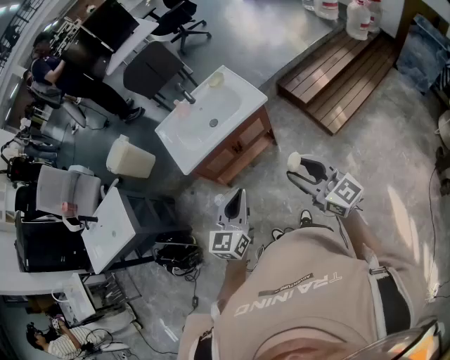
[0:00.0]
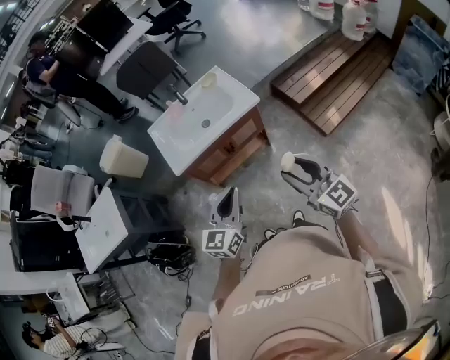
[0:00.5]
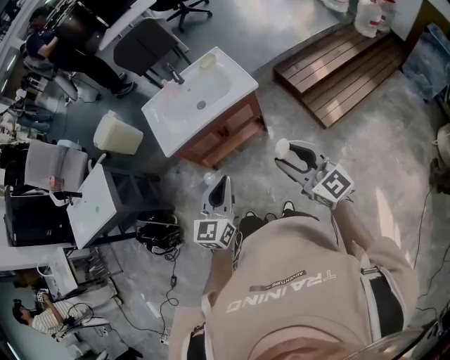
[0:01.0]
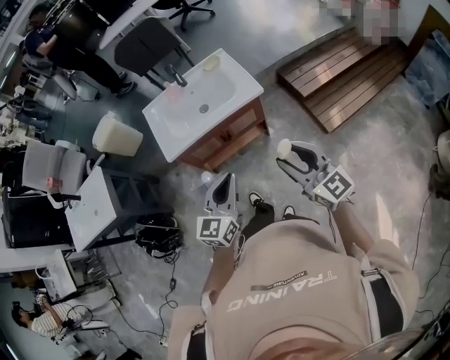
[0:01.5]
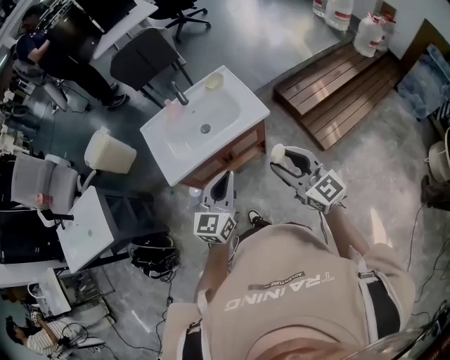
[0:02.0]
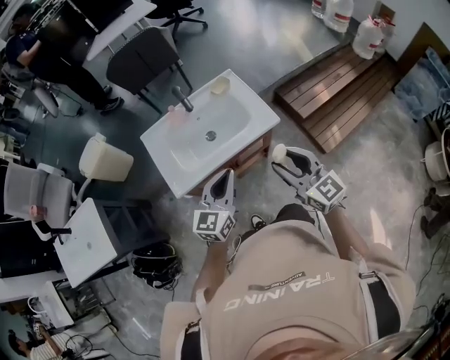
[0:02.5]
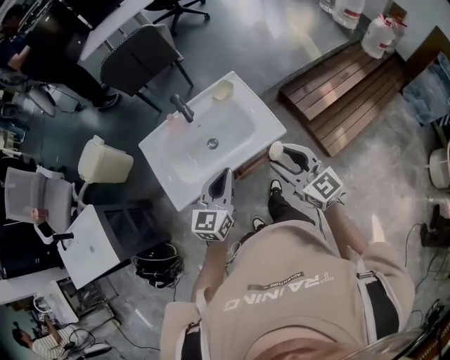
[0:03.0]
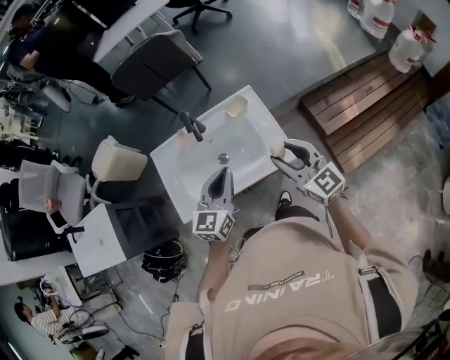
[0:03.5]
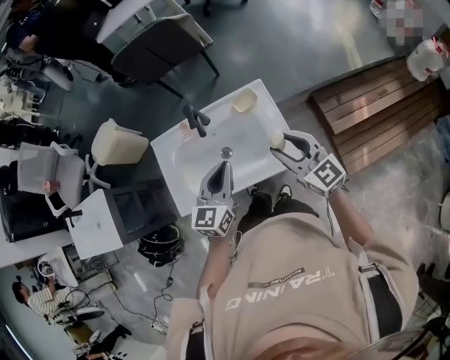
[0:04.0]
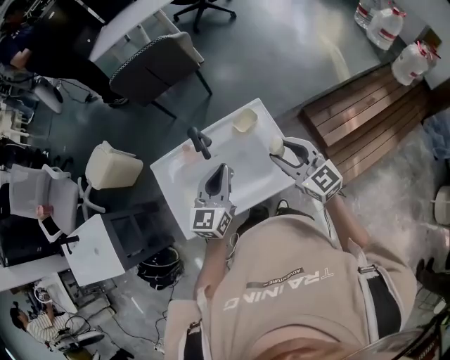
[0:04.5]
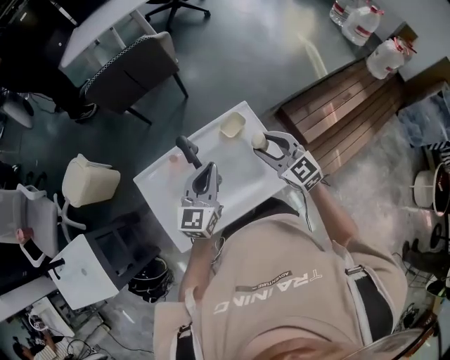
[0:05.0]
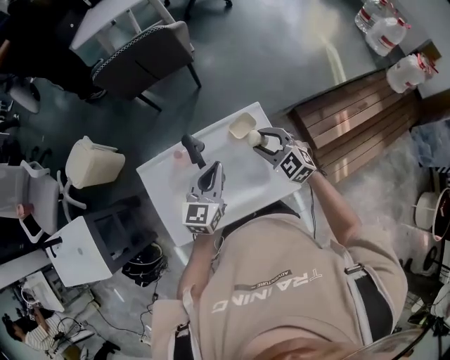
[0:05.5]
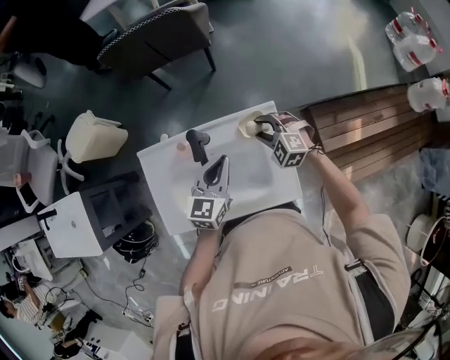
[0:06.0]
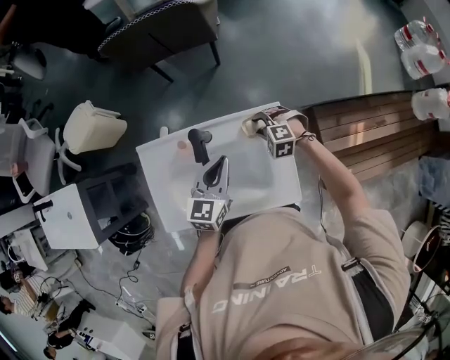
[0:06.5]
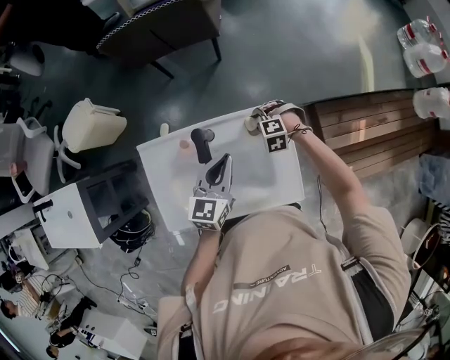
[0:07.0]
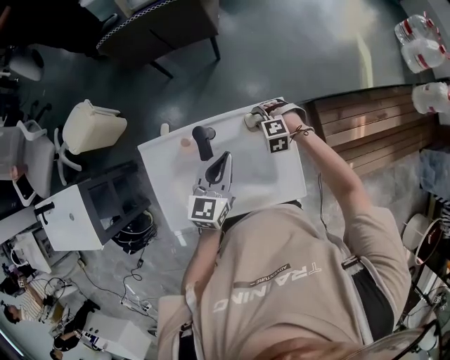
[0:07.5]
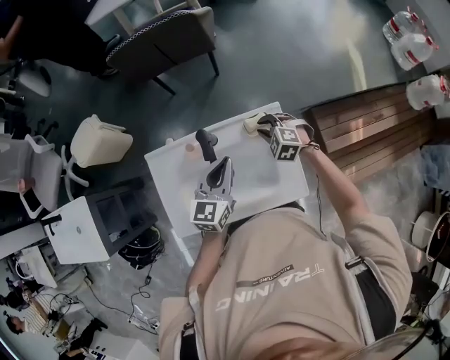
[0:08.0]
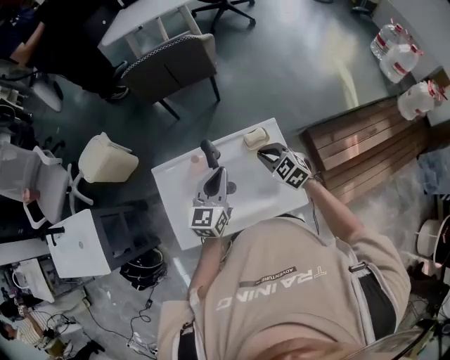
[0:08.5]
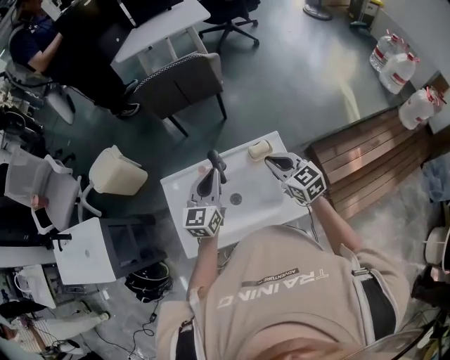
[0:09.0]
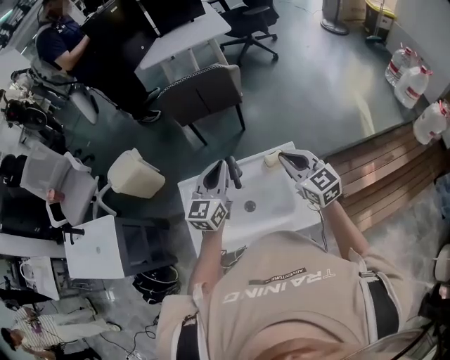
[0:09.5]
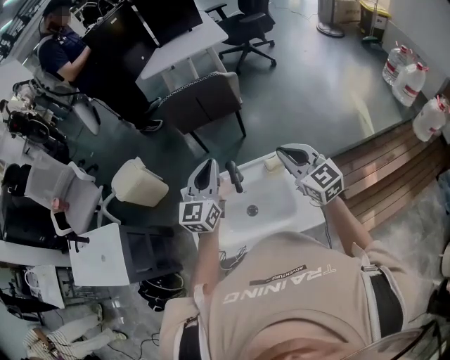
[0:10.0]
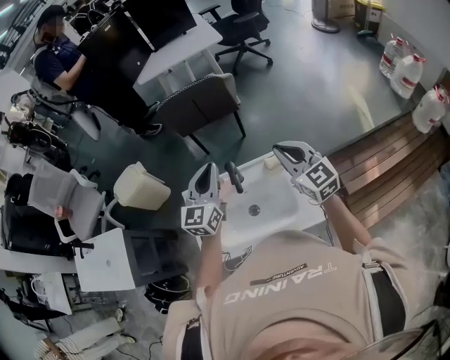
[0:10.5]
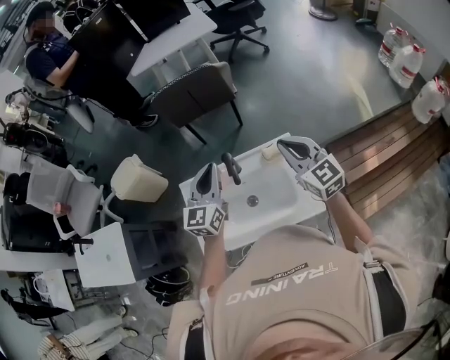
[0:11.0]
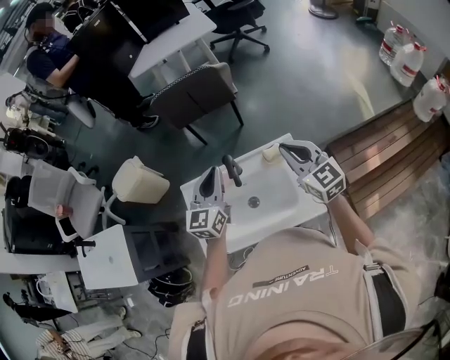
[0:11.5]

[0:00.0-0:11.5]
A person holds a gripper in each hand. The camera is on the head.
0:00.0 to 0:02.0: The grippers both shift forward by roughly 15 cm.
0:02.0 to 0:04.0: Both grippers move forward, roughly 35 cm.
0:04.0 to 0:06.0: The left gripper travels forward by about 15 cm. Meanwhile the right gripper goes approximately 30 cm forward and downward, and angles its fingers downward, by approximately 40 degrees.
0:06.0 to 0:07.5: The right gripper goes roughly 10 cm downward, and rotates some 30 degrees.
0:07.5 to 0:09.5: The left gripper goes approximately 15 cm upward and to the left. The right gripper shifts some 30 cm upward, tips its fingers upward by some 50 degrees, and closes.
0:09.5 to 0:11.5: There are only small adjustments of the grippers.

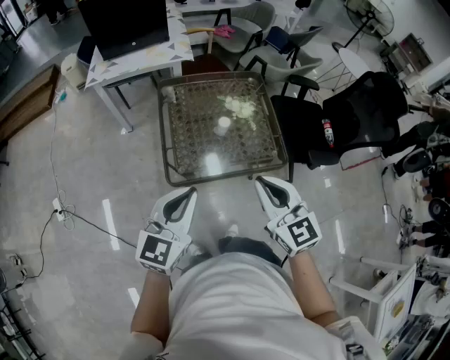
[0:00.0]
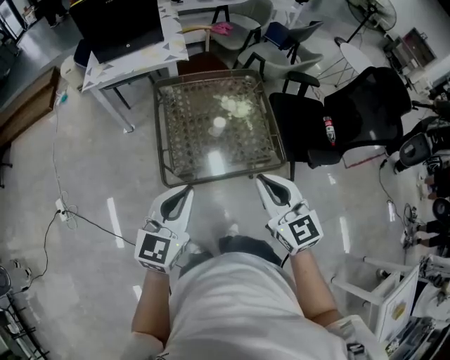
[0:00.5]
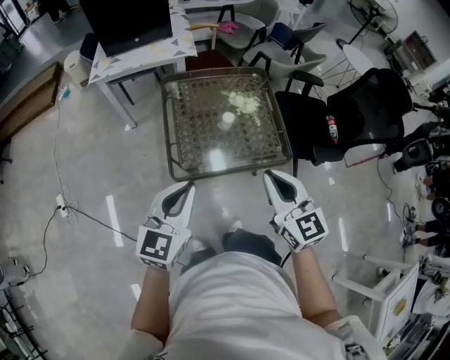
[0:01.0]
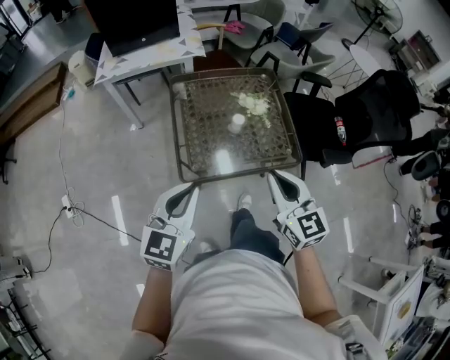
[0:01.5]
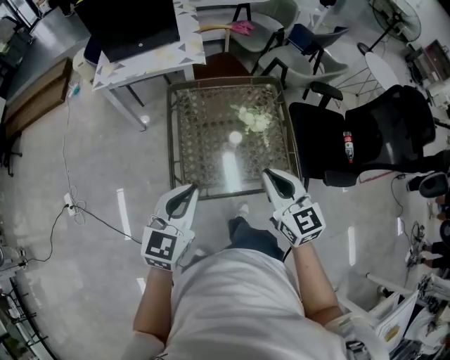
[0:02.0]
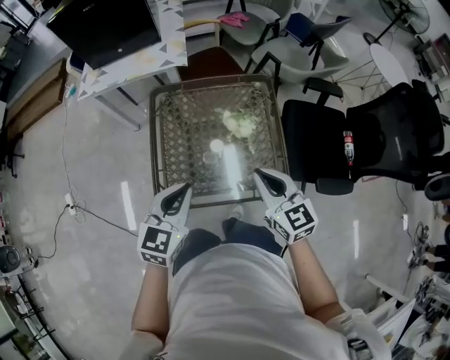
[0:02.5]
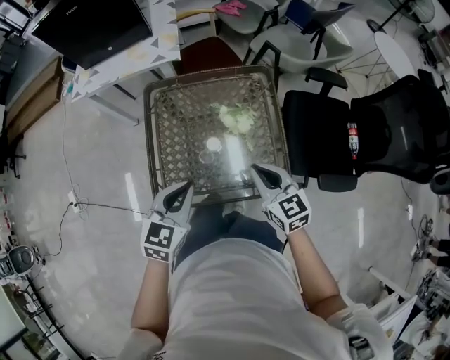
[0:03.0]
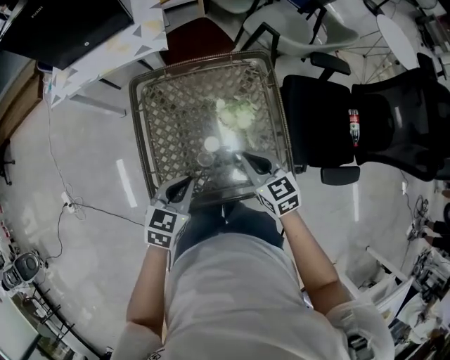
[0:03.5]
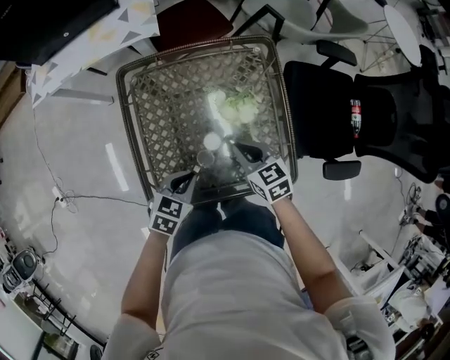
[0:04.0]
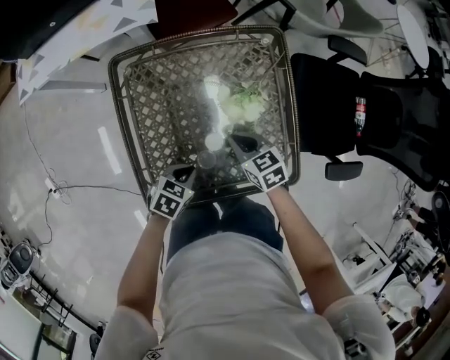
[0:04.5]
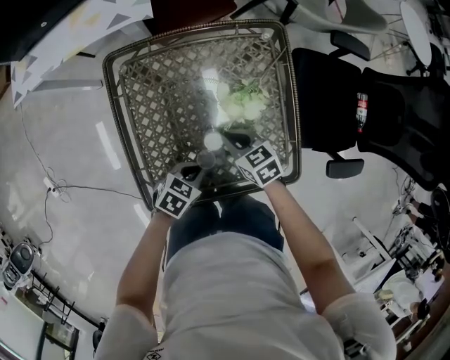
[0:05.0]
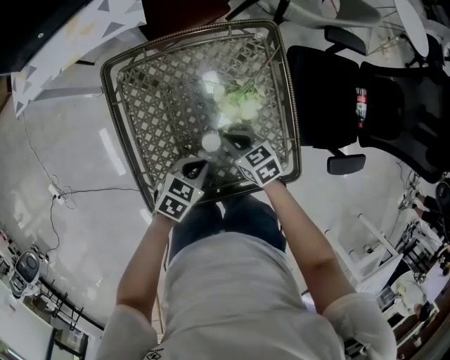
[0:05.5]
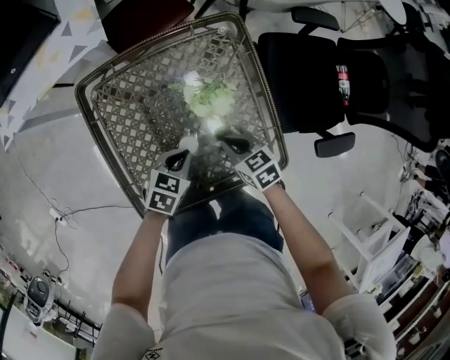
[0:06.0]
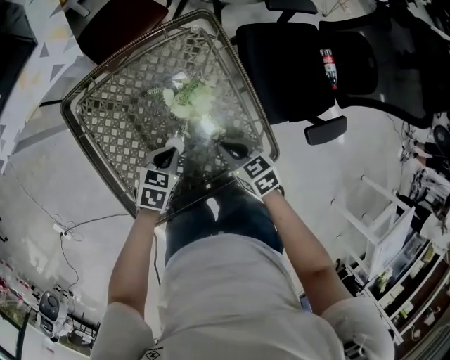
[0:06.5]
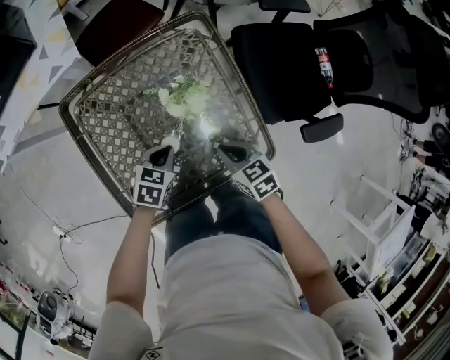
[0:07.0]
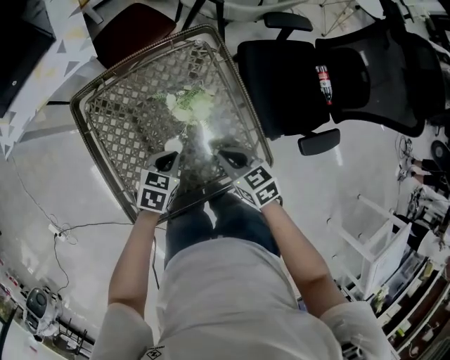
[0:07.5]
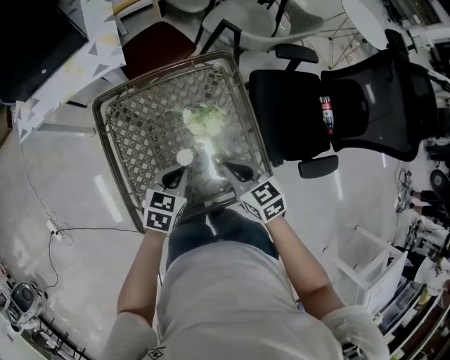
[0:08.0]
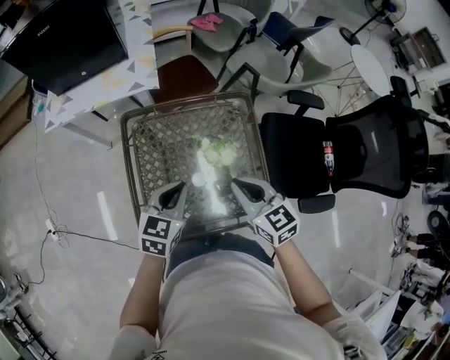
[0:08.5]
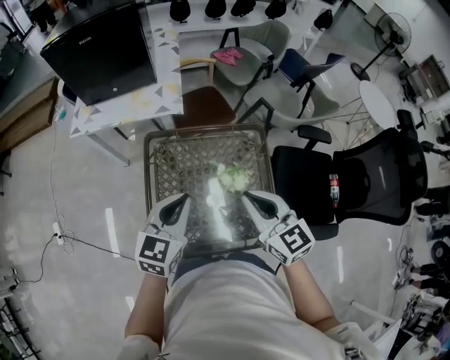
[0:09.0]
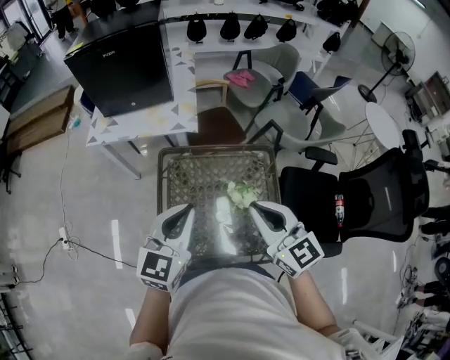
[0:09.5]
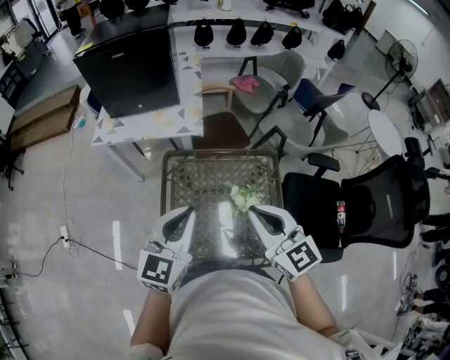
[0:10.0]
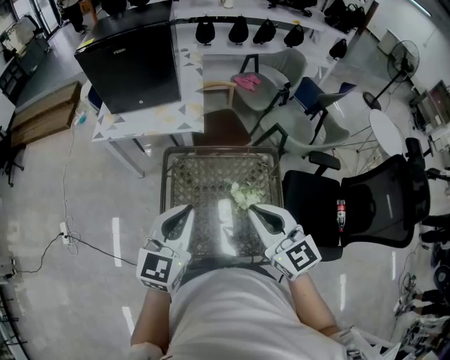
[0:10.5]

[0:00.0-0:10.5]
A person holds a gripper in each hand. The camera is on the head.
0:00.0 to 0:02.0: Both grippers travel together forward, some 15 cm.
0:02.0 to 0:04.0: The grippers both shift downward and forward by approximately 30 cm. The left gripper points its fingers approximately 30 degrees further downward; the right gripper changes its angle by about 30 degrees.
0:04.0 to 0:06.5: The right gripper changes place by about 10 cm. Meanwhile the left gripper moves approximately 15 cm.
0:06.5 to 0:08.5: Both grippers travel together upward, some 25 cm. The right gripper swivels some 30 degrees. Meanwhile the left gripper turns by approximately 30 degrees.
0:08.5 to 0:10.5: The two grippers go roughly 20 cm upward. The left gripper changes its angle by approximately 30 degrees. The right gripper changes its angle by some 20 degrees.

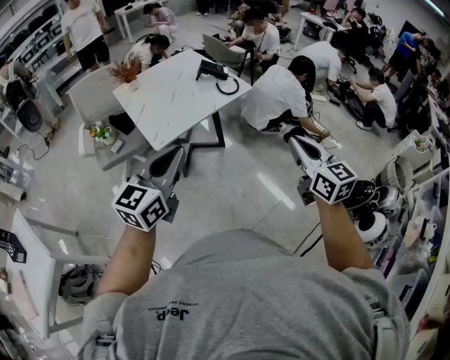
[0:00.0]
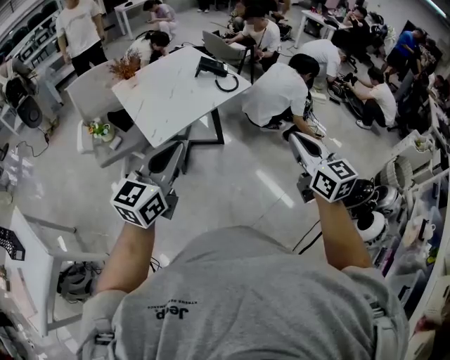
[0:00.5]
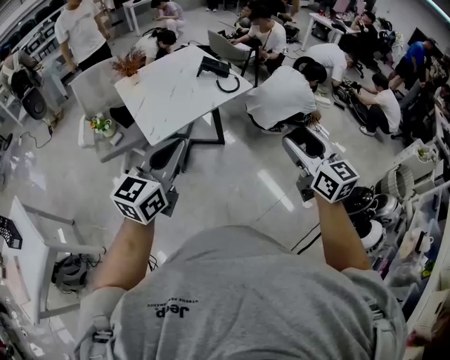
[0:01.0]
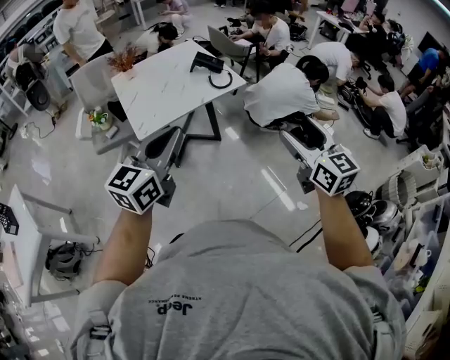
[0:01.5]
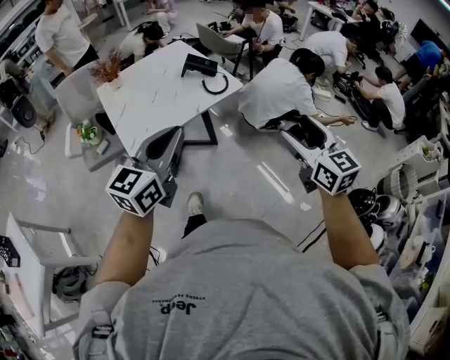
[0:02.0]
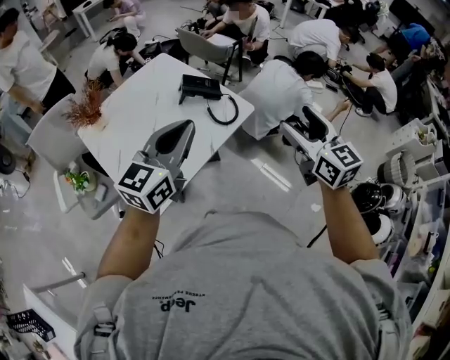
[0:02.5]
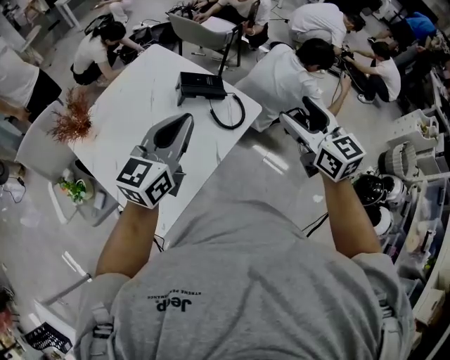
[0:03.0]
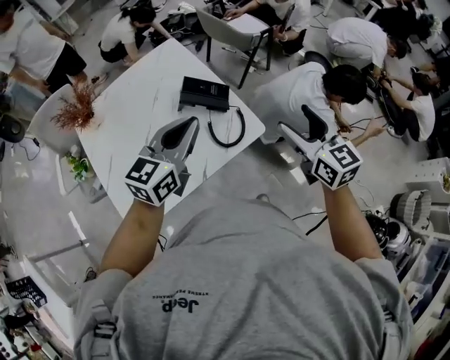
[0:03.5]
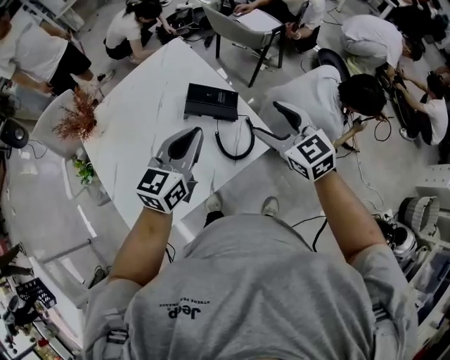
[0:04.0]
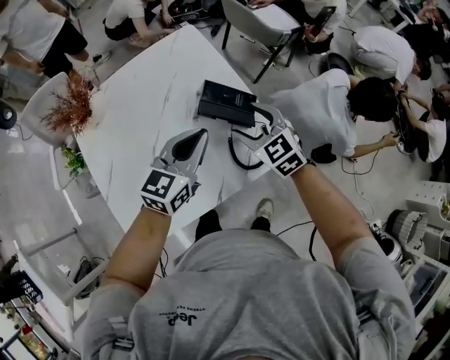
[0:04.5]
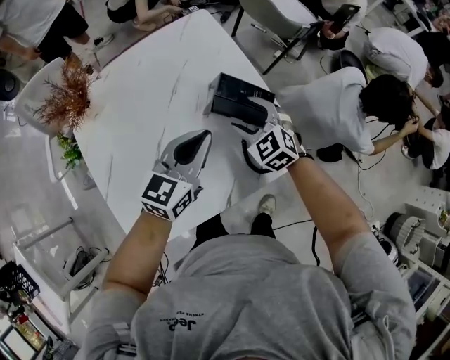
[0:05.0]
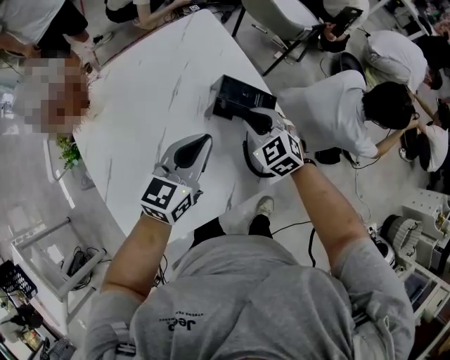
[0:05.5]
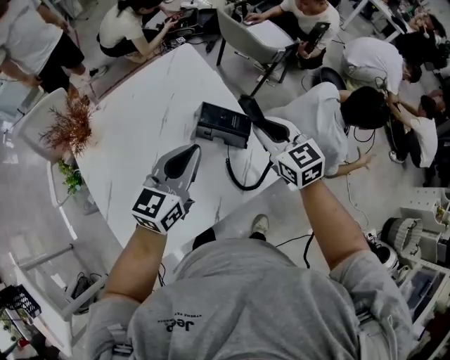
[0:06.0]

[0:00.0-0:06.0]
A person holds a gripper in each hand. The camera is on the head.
0:00.0 to 0:02.0: The grippers both shift forward and to the right by approximately 20 cm. The right gripper opens.
0:02.0 to 0:04.0: Both grippers are carried forward, roughly 50 cm. The right gripper swivels about 20 degrees.
0:04.0 to 0:06.0: The two grippers go approximately 10 cm forward and to the left. The right gripper travels downward and back again, approximately 20 cm each way, and closes its fingers. Meanwhile the left gripper reaches some 10 cm downward, then returns.
